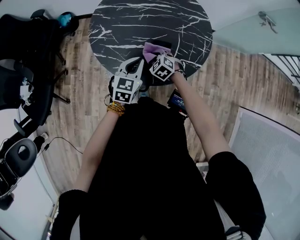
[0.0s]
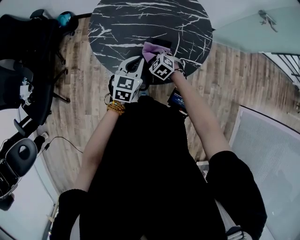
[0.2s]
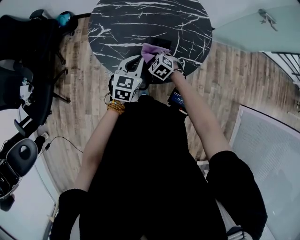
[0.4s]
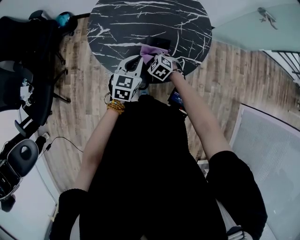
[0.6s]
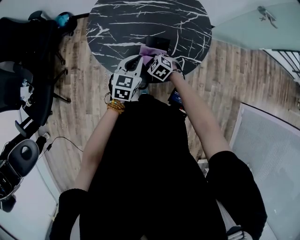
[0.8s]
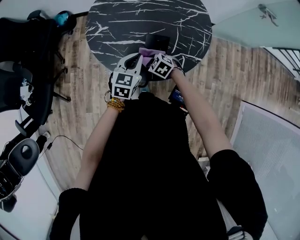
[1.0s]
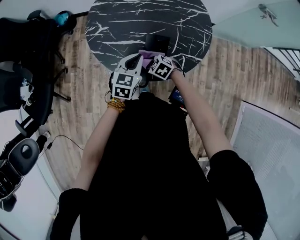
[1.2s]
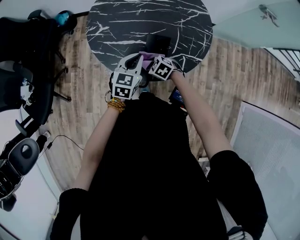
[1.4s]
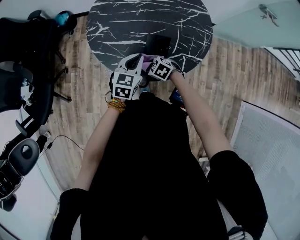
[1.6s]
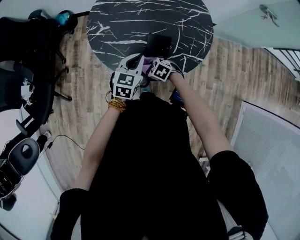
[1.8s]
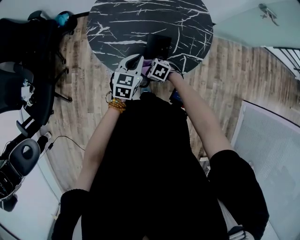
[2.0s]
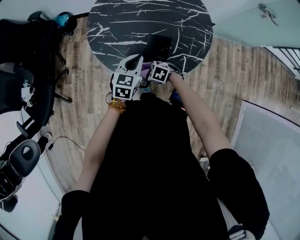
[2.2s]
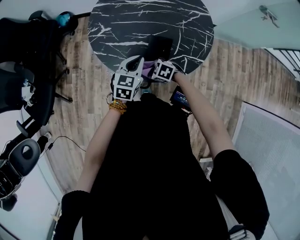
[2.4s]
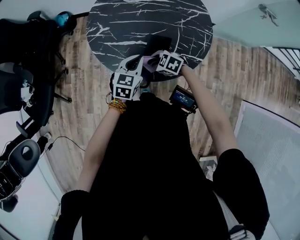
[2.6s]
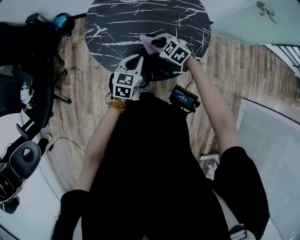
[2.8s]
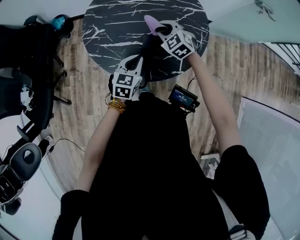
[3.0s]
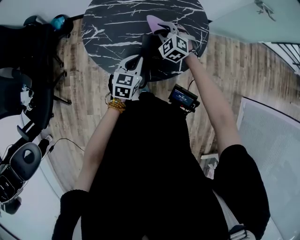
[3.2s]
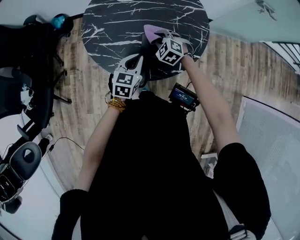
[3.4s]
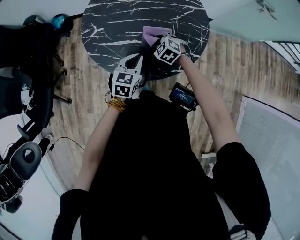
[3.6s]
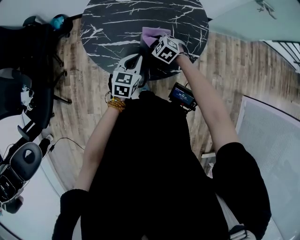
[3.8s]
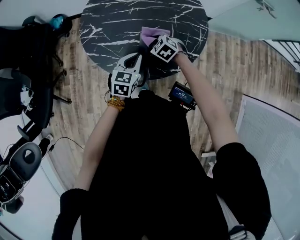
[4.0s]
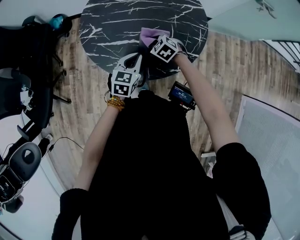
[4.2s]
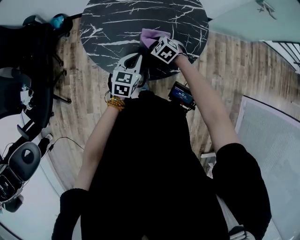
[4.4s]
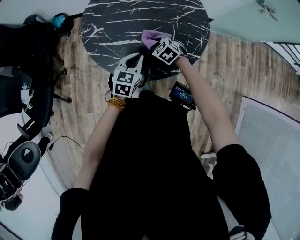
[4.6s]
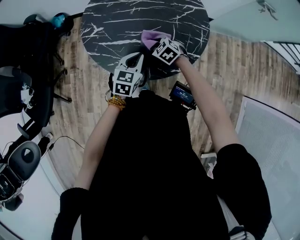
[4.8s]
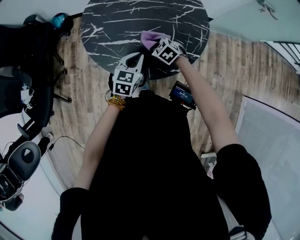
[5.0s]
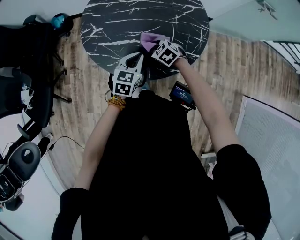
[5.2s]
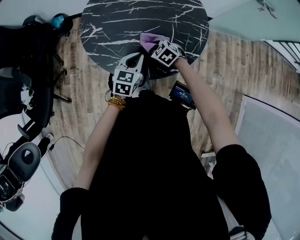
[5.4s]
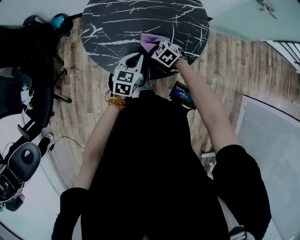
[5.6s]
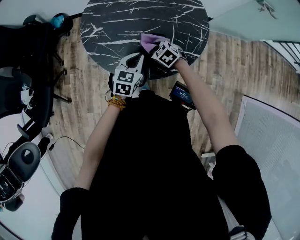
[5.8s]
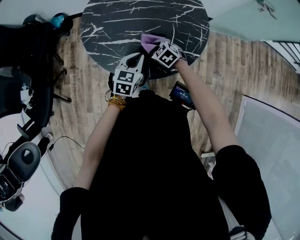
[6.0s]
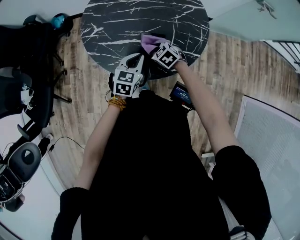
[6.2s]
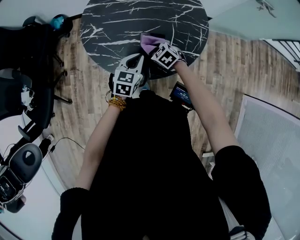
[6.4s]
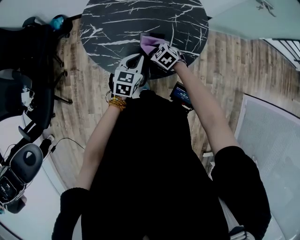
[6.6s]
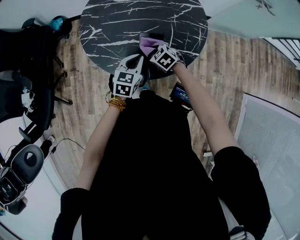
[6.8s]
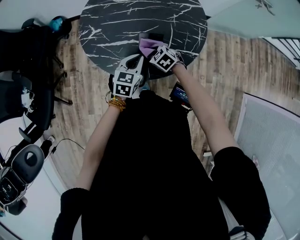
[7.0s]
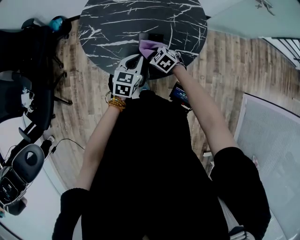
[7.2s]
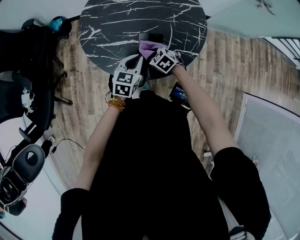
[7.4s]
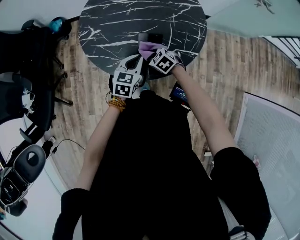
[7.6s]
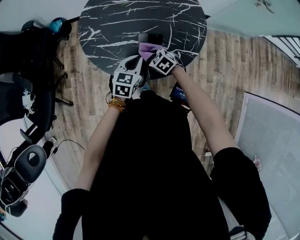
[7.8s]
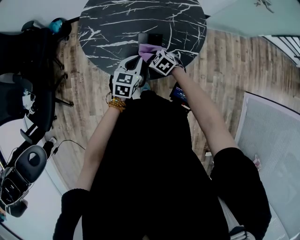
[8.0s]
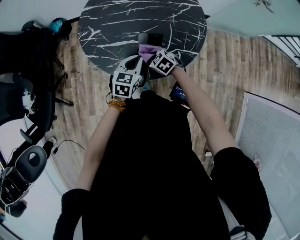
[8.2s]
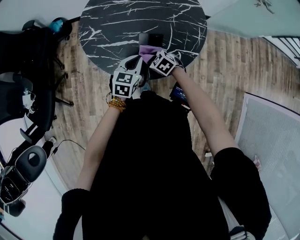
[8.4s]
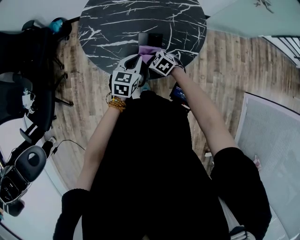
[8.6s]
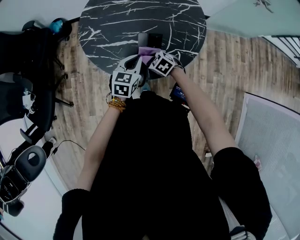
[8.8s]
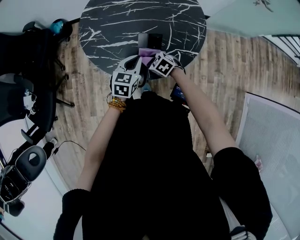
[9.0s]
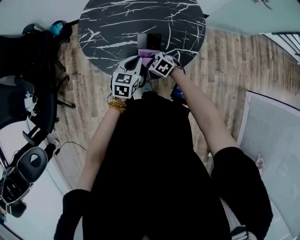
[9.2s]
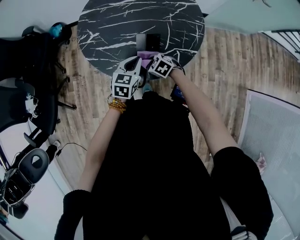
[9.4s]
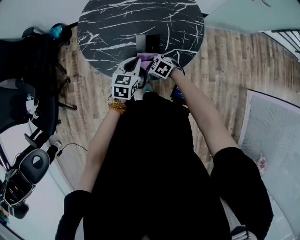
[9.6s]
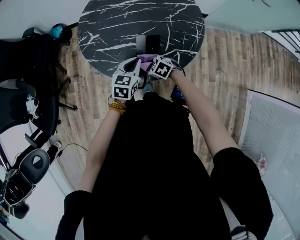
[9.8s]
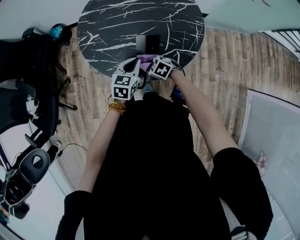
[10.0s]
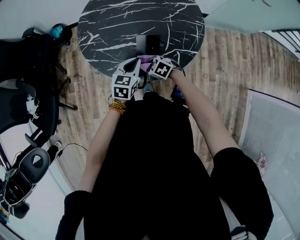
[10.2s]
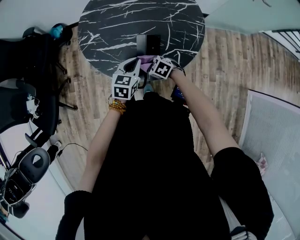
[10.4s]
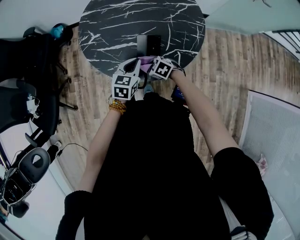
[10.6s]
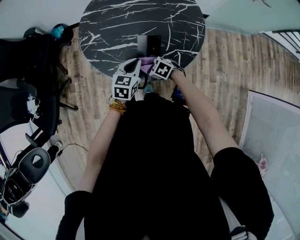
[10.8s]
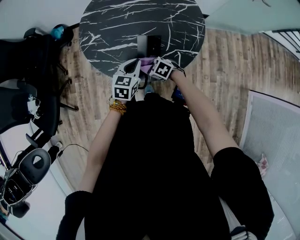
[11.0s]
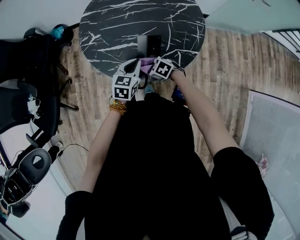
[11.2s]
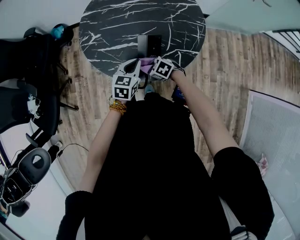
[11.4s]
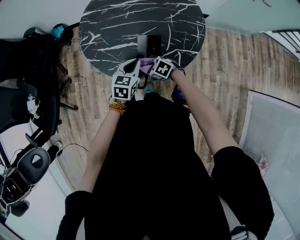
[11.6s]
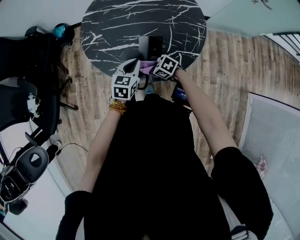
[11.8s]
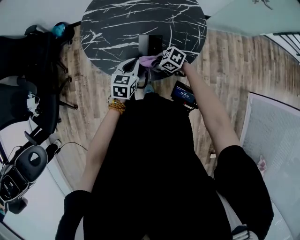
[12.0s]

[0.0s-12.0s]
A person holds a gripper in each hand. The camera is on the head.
0.0s to 1.6s: The right gripper moves backward, roughly 5 cm, and turns by roughly 20 degrees.
1.6s to 3.0s: The right gripper shifts by some 25 cm, and turns by some 40 degrees.
3.0s to 4.4s: The right gripper is displaced downward by approximately 10 cm, and changes its angle by some 20 degrees.
4.4s to 6.0s: The grippers make only small movements.
6.0s to 7.6s: There are only small adjustments of the grippers.
7.6s to 9.0s: The grippers make only small movements.
9.0s to 10.4s: The grippers stay close to where they were, moving slightly.
10.4s to 12.0s: The grippers make only small movements.

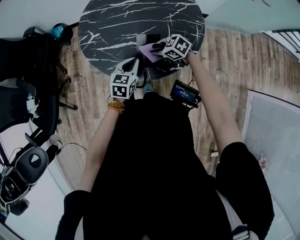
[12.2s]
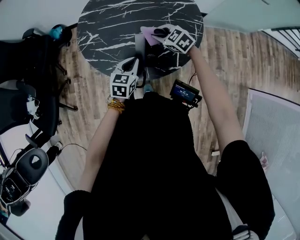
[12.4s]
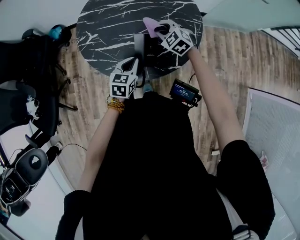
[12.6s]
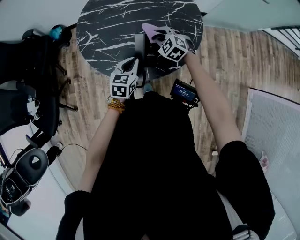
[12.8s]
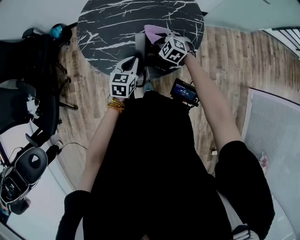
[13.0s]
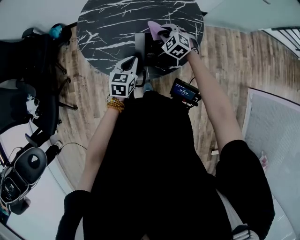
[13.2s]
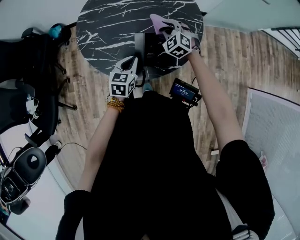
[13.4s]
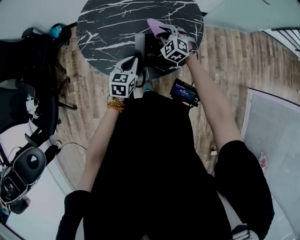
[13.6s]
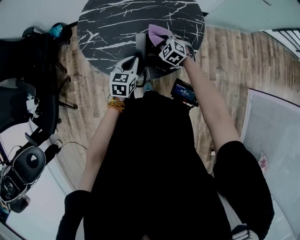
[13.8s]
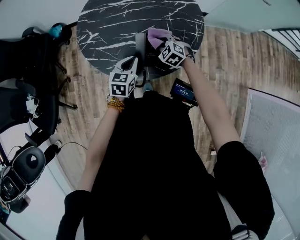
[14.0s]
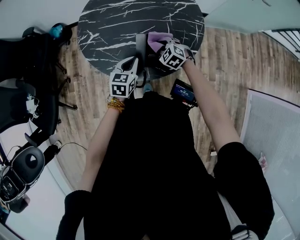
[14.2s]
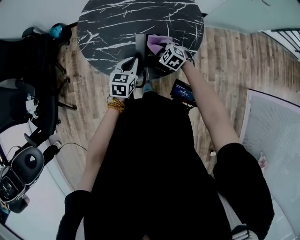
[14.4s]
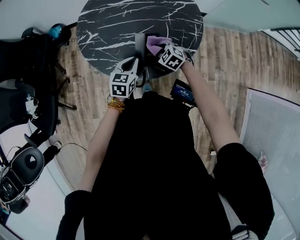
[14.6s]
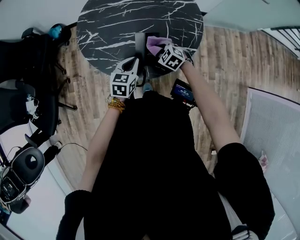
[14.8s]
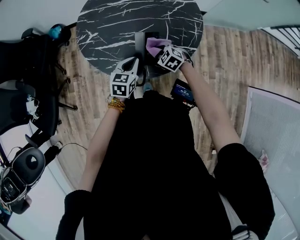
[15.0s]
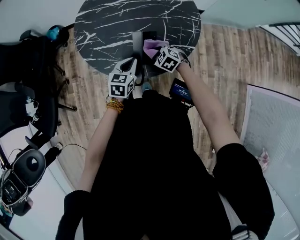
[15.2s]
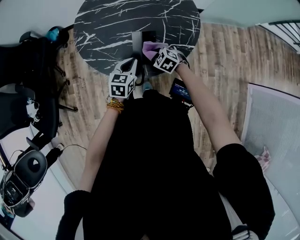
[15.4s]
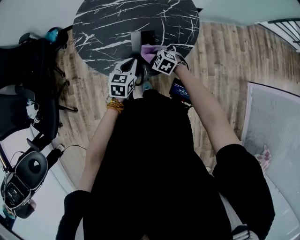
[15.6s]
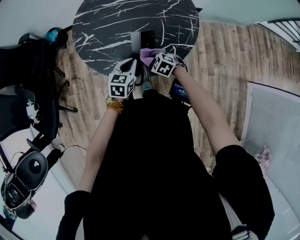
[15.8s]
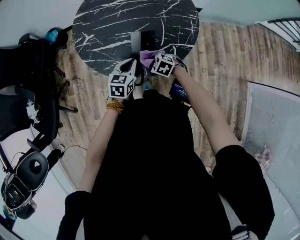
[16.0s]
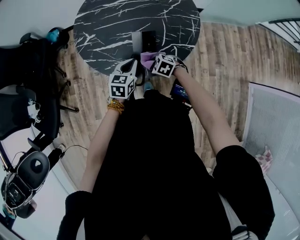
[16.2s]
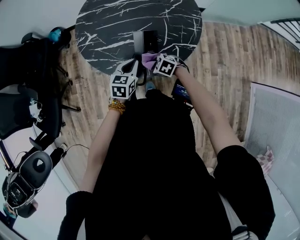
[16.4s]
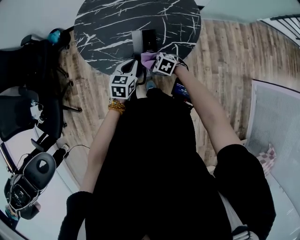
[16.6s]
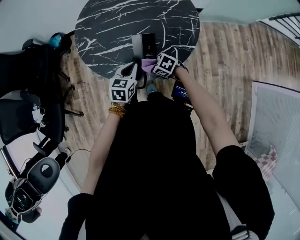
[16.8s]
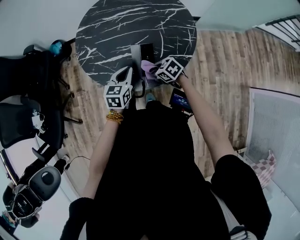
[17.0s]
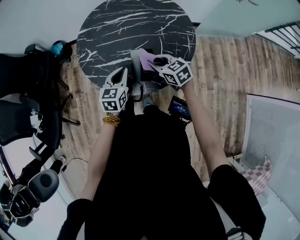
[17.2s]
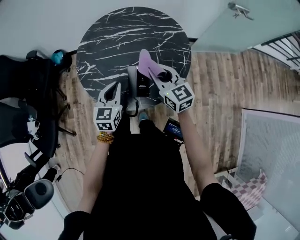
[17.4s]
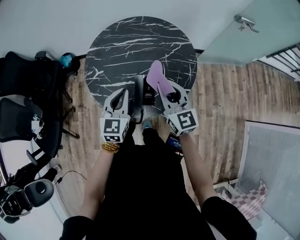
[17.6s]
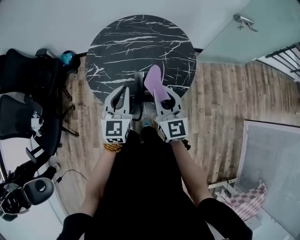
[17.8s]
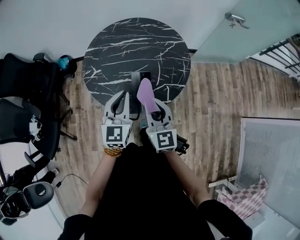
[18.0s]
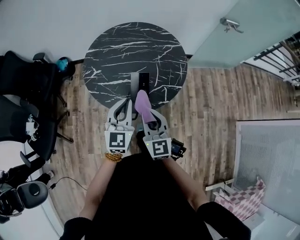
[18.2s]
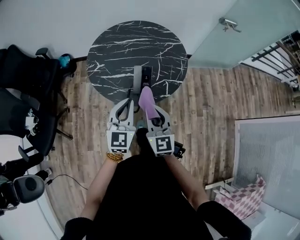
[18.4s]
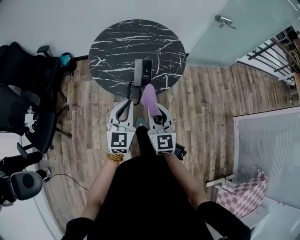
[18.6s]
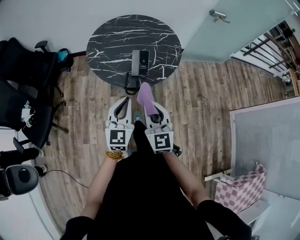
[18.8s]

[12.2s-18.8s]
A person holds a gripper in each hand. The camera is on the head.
12.2s to 13.8s: The right gripper goes up and down, about 5 cm each way, reversing 3 times, and swivels roughly 40 degrees.
13.8s to 15.4s: The right gripper is displaced backward by about 10 cm.
15.4s to 17.2s: The left gripper heads upward, covering approximately 5 cm, while the right gripper goes roughly 15 cm upward, and changes its angle by approximately 40 degrees.
17.2s to 18.8s: Both grippers travel together backward and upward, approximately 35 cm. The right gripper swivels some 40 degrees; the left gripper changes its angle by approximately 30 degrees.

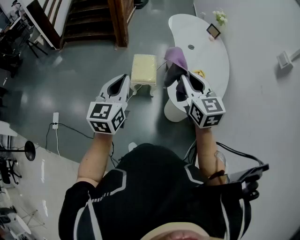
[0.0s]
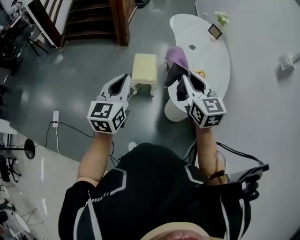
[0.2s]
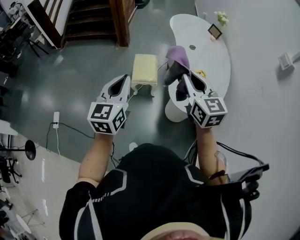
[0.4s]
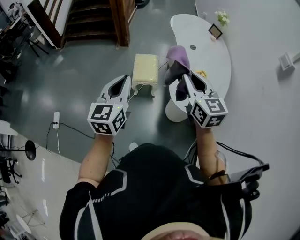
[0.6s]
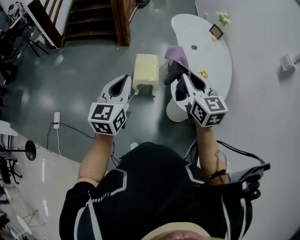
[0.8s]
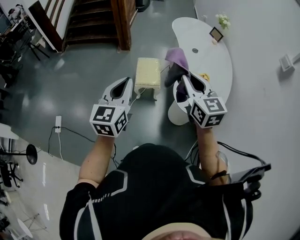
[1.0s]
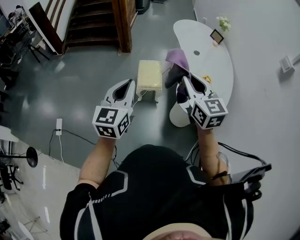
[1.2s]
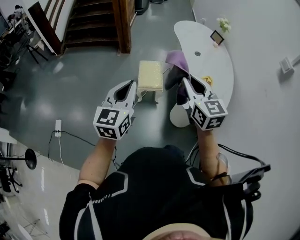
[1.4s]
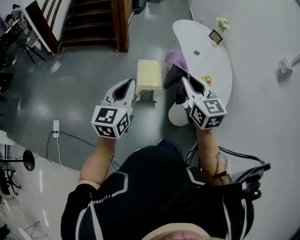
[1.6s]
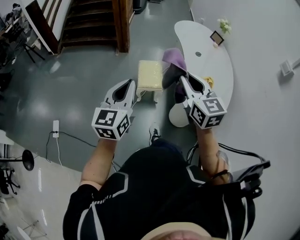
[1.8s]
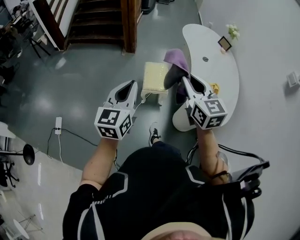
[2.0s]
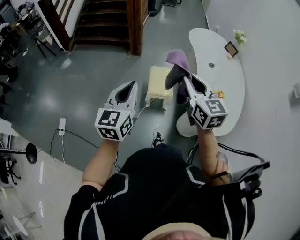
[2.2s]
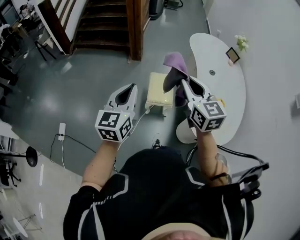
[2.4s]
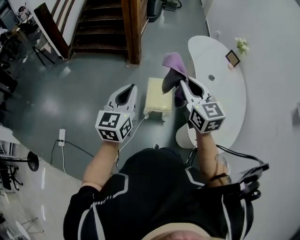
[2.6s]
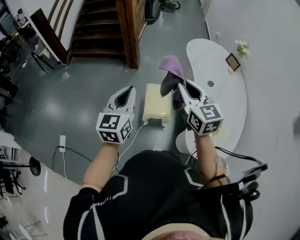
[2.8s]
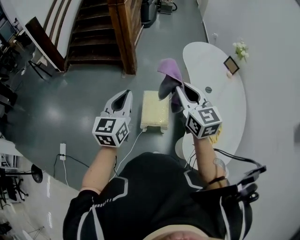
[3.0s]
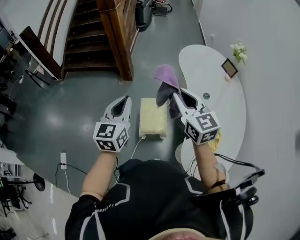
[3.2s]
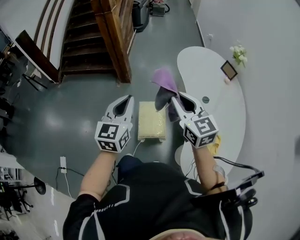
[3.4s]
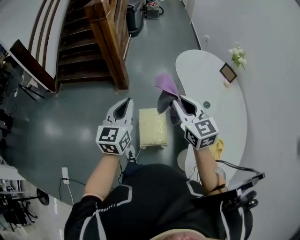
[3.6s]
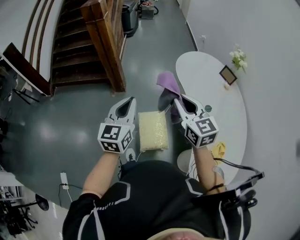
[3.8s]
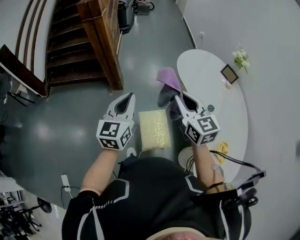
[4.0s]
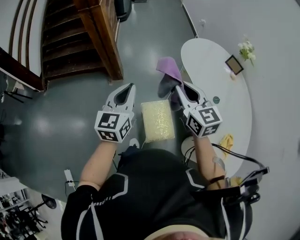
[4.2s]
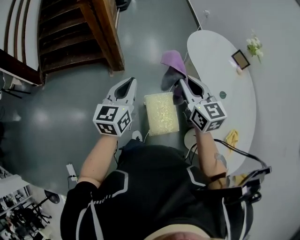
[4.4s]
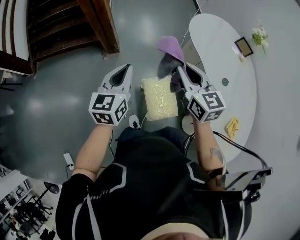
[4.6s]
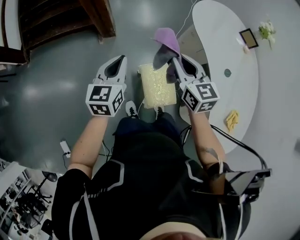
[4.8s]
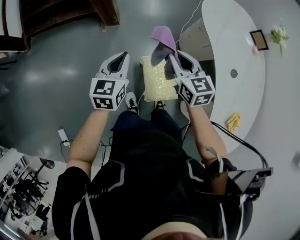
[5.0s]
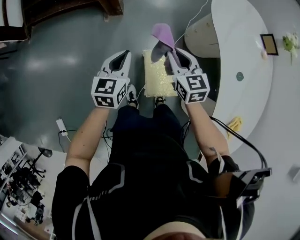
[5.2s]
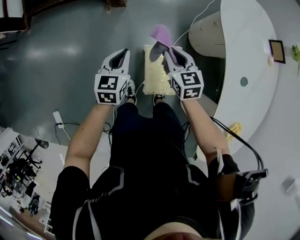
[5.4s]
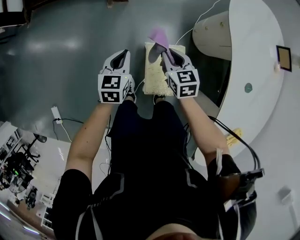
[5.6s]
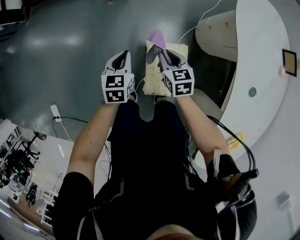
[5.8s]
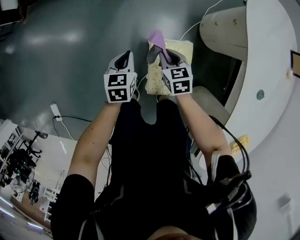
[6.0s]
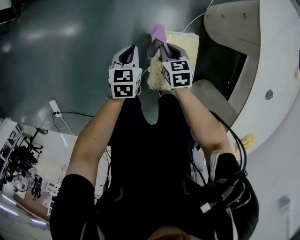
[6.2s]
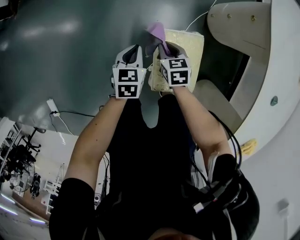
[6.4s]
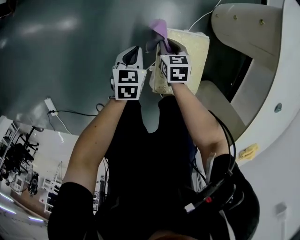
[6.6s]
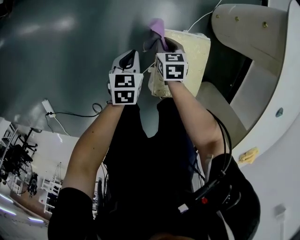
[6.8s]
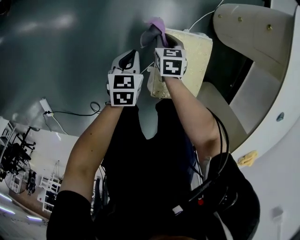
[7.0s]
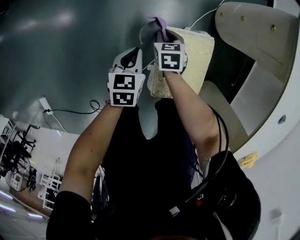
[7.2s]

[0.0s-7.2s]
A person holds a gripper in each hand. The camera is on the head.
0.0s to 1.4s: The two grippers go about 10 cm to the left.
1.4s to 2.8s: The grippers both shift forward by about 25 cm.
2.8s to 4.4s: The grippers both shift forward by about 35 cm.
4.4s to 5.8s: The grippers both shift downward by some 40 cm. The right gripper points its fingers roughly 30 degrees further downward. Meanwhile the left gripper tilts its fingers approximately 30 degrees downward.
5.8s to 7.2s: The grippers both shift downward by some 25 cm.
